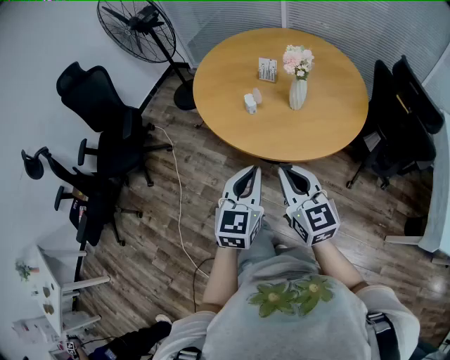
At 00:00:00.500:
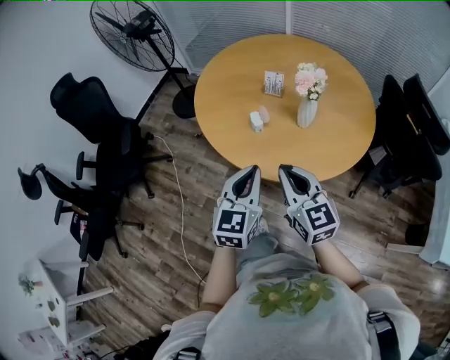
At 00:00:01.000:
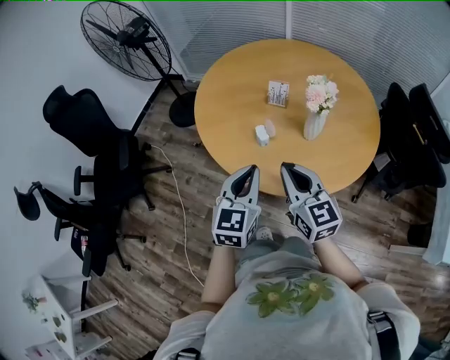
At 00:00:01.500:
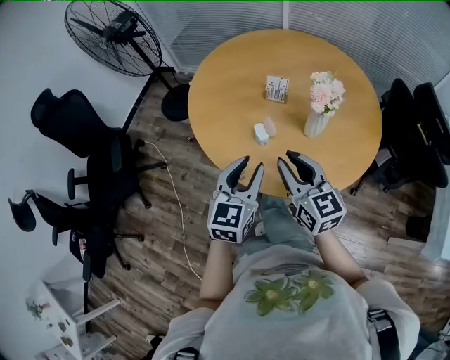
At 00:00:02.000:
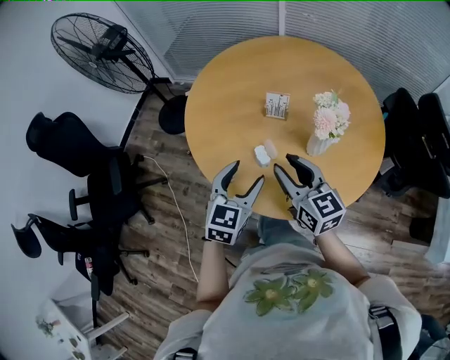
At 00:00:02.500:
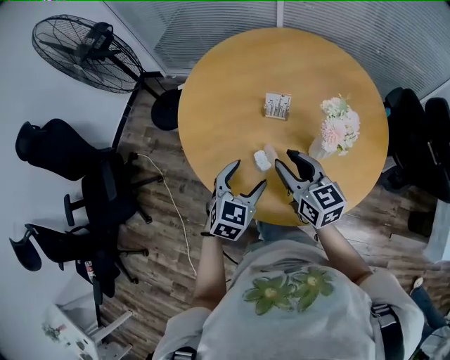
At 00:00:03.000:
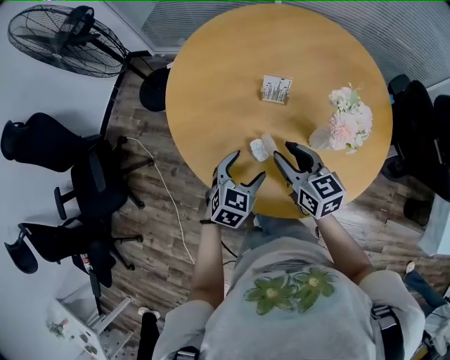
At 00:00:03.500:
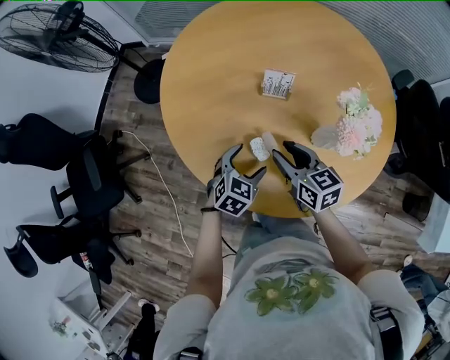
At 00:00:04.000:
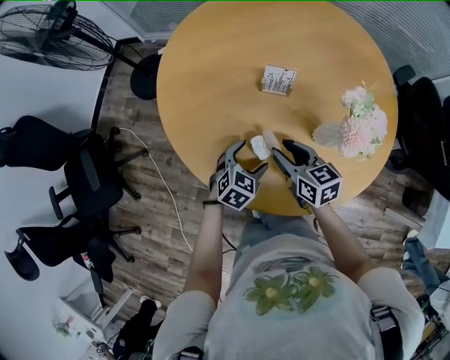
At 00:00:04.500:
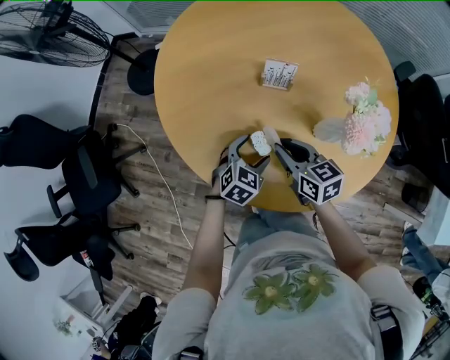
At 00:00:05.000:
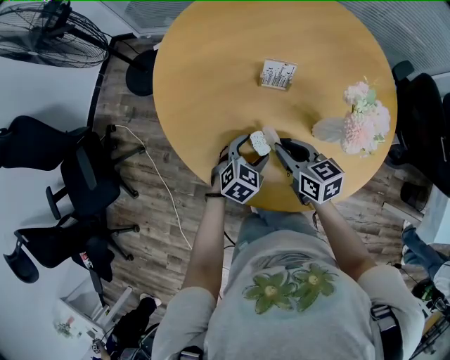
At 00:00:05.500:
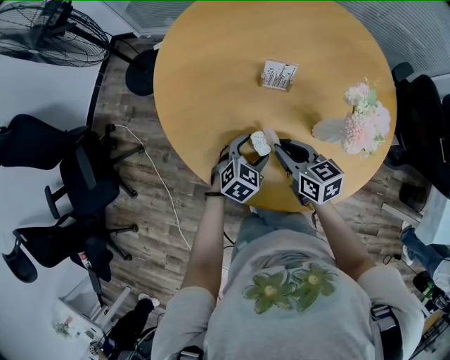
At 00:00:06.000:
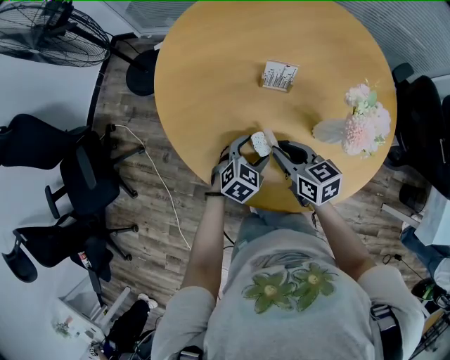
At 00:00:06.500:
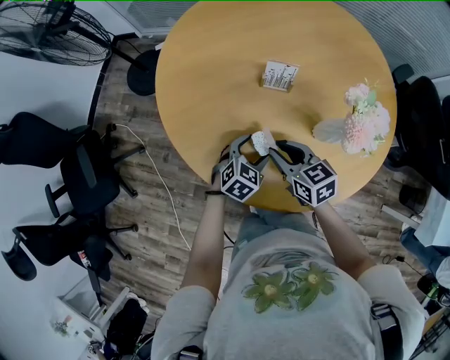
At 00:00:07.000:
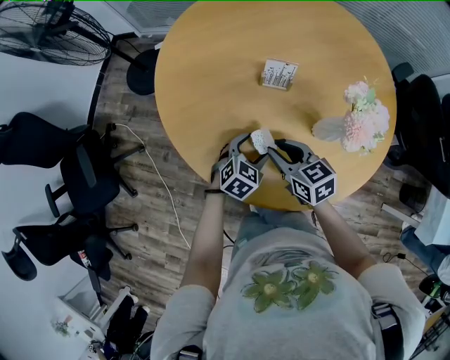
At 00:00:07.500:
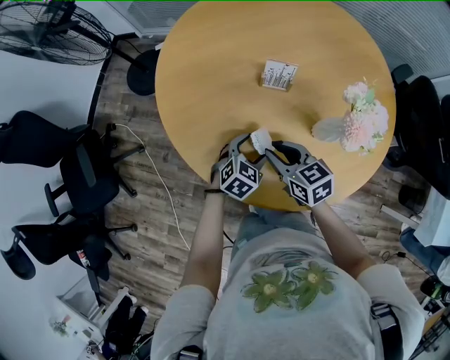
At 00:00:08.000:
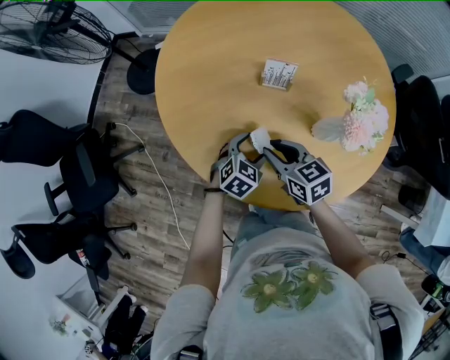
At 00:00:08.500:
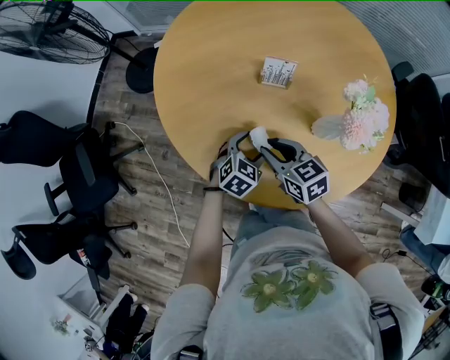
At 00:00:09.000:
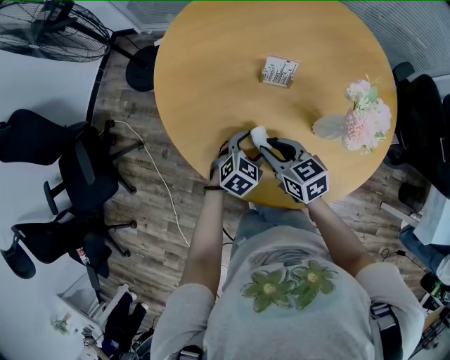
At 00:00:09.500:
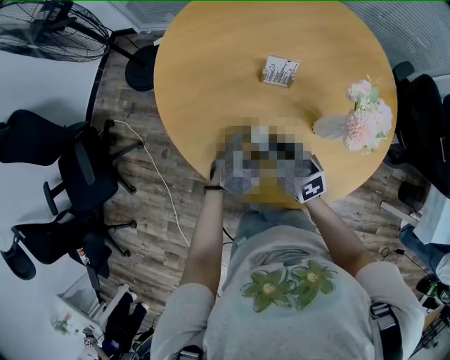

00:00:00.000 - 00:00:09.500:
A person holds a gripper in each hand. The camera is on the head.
00:00:00.000 - 00:00:02.000: Both grippers travel together forward, about 30 cm. The left gripper opens. Meanwhile the right gripper opens.
00:00:02.000 - 00:00:04.000: The right gripper shifts some 20 cm downward and forward, and turns by roughly 20 degrees. The left gripper travels downward by roughly 25 cm, and turns by about 30 degrees.
00:00:04.000 - 00:00:05.500: The right gripper closes its fingers.
00:00:05.500 - 00:00:07.500: The grippers stay close to where they were, moving slightly.
00:00:07.500 - 00:00:09.500: The right gripper closes up.

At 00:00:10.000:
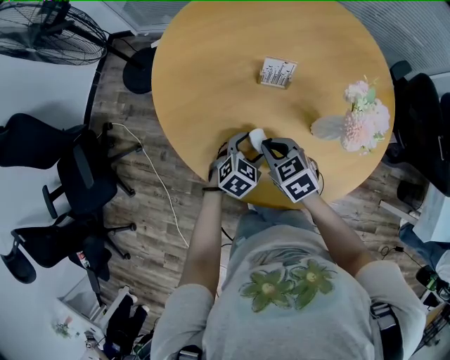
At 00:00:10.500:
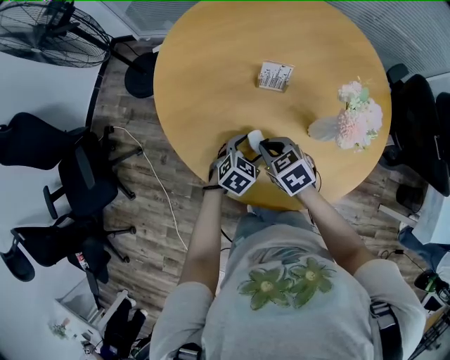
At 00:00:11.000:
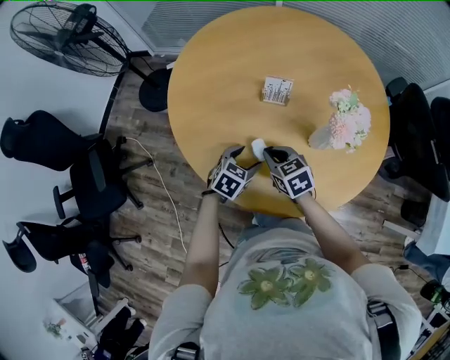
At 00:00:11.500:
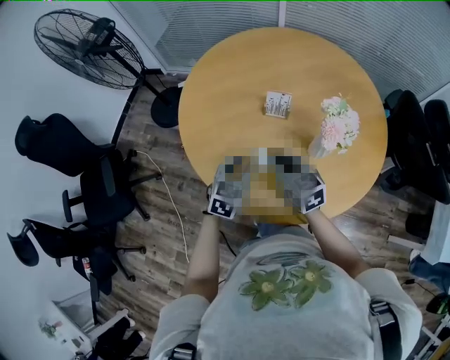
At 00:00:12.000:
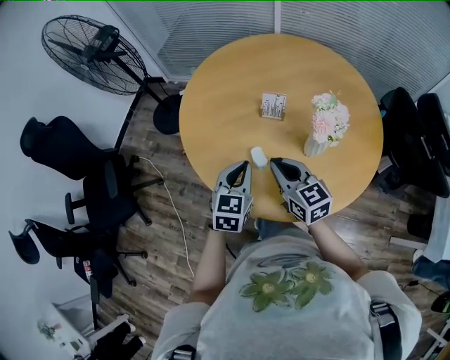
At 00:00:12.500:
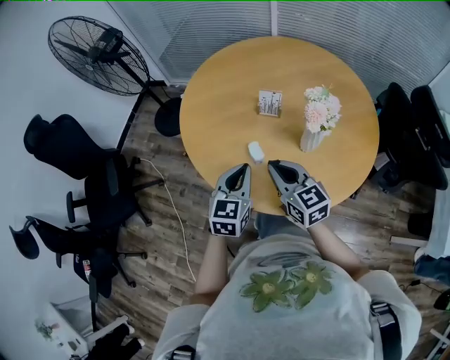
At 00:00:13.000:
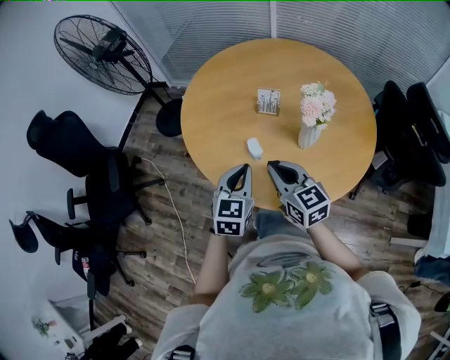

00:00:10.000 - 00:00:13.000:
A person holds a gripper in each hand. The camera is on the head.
00:00:10.000 - 00:00:11.500: The two grippers go approximately 10 cm upward. The left gripper changes its angle by some 20 degrees, and closes up, while the right gripper swivels approximately 20 degrees.
00:00:11.500 - 00:00:13.000: Both grippers travel together backward and upward, roughly 15 cm.

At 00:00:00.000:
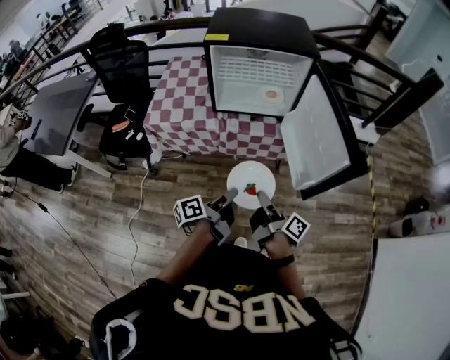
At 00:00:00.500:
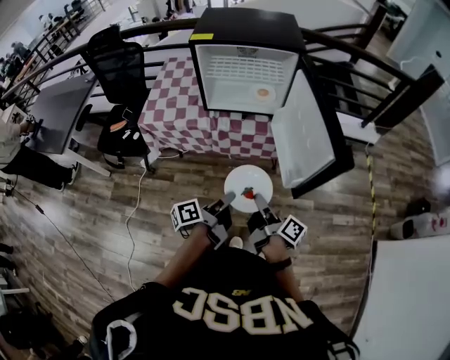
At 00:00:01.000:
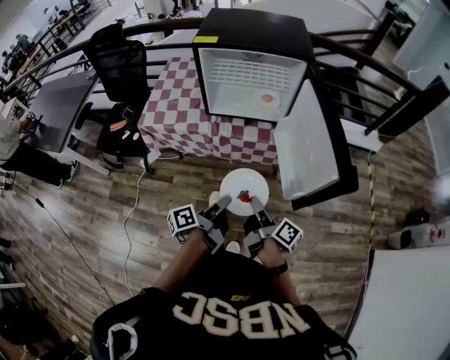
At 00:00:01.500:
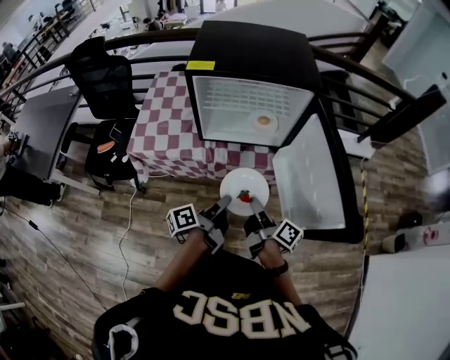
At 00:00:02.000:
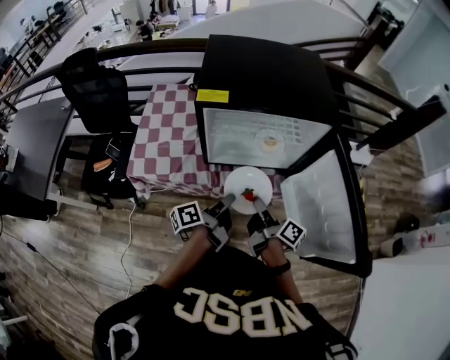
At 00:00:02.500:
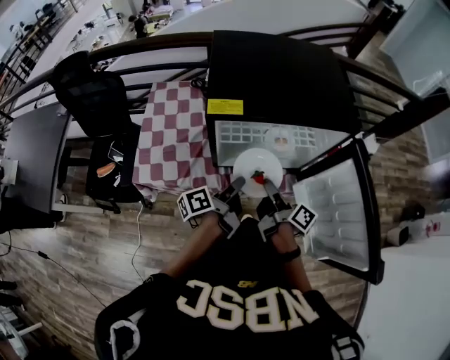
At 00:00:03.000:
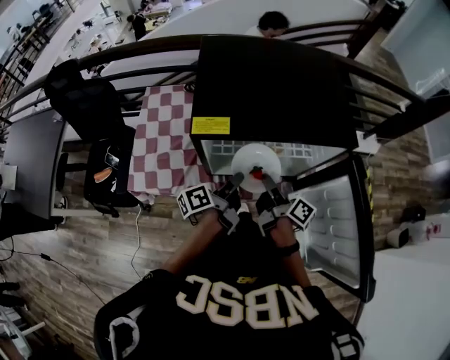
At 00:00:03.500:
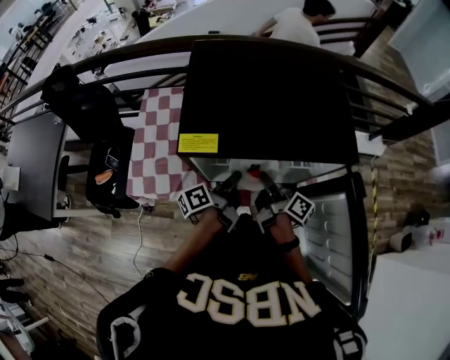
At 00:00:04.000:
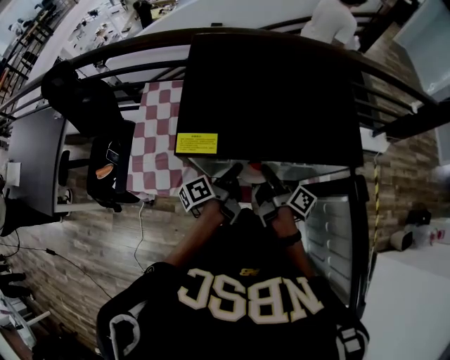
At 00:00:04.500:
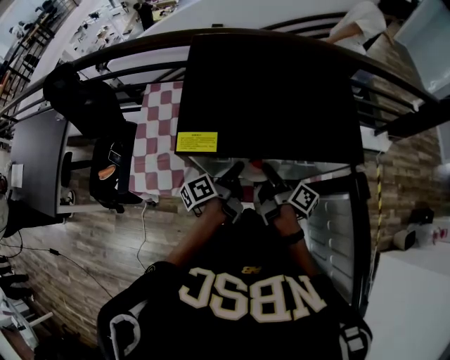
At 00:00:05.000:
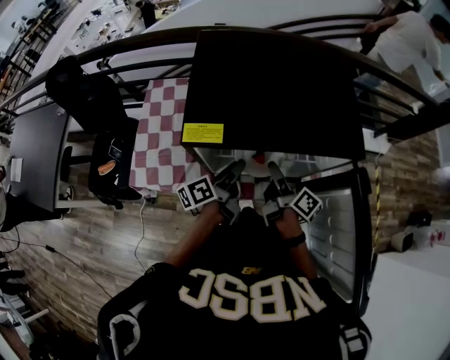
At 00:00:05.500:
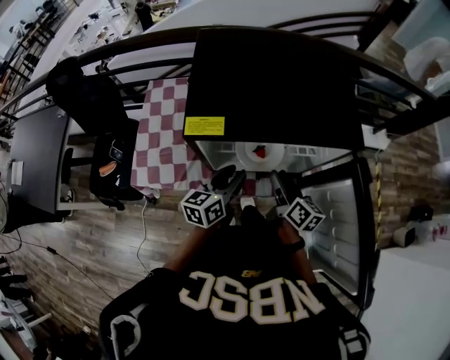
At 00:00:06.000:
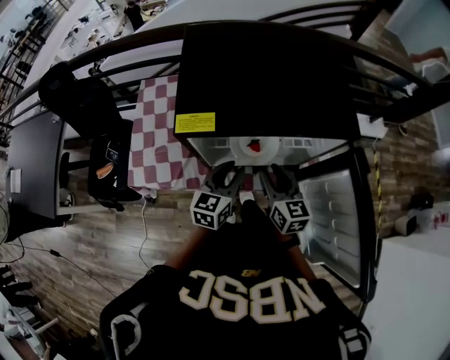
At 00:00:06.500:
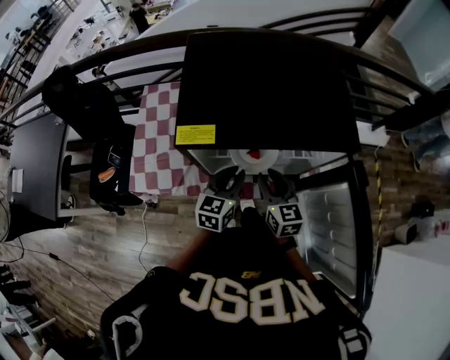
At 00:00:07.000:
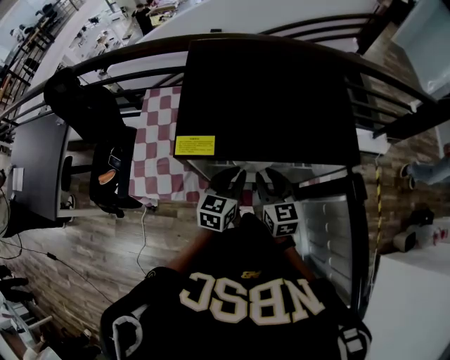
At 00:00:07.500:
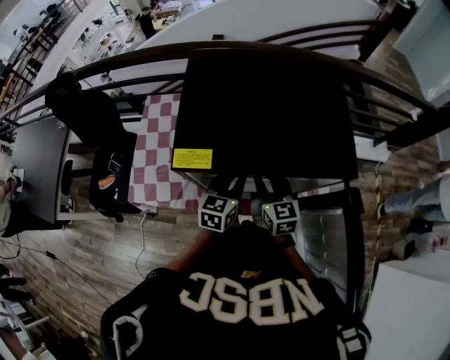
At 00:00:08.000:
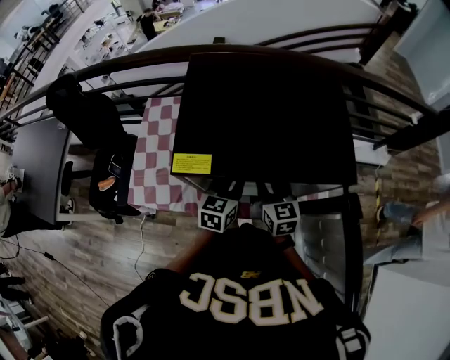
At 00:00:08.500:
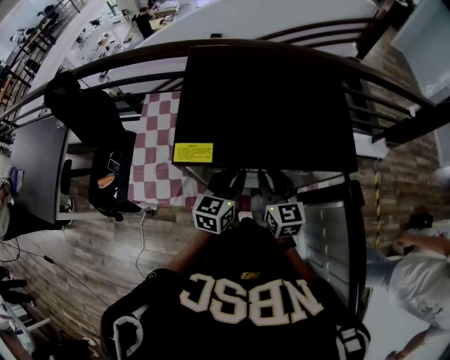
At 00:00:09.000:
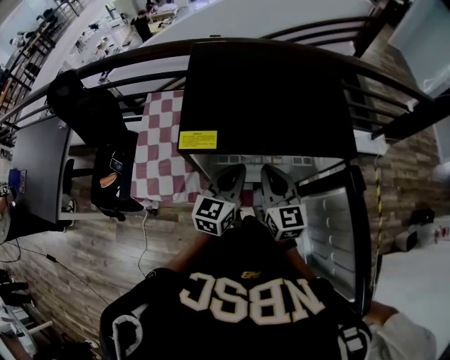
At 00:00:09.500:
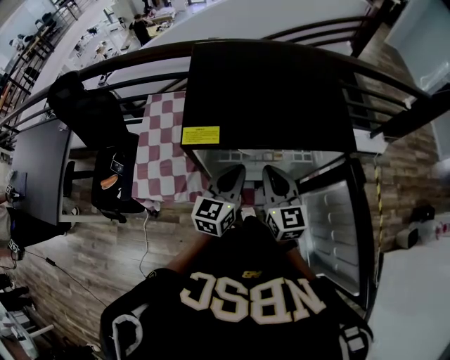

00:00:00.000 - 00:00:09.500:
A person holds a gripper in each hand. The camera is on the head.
00:00:00.000 - 00:00:02.000: Both grippers move forward, about 25 cm.
00:00:02.000 - 00:00:04.000: Both grippers travel together forward, about 20 cm.
00:00:04.000 - 00:00:05.500: The right gripper ends up roughly 5 cm from where it was, turns by roughly 40 degrees, and opens up, while the left gripper shifts about 5 cm backward, rotates around the line of its fingers by some 50 degrees, clockwise from behind, and opens up.
00:00:05.500 - 00:00:07.500: Both grippers travel together forward, approximately 5 cm. The right gripper rolls counterclockwise, seen from behind, by about 40 degrees. Meanwhile the left gripper changes its angle by roughly 20 degrees.
00:00:07.500 - 00:00:09.500: Both grippers travel together upward and backward, about 10 cm. The right gripper closes up.

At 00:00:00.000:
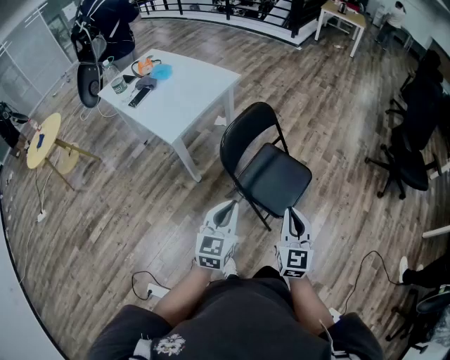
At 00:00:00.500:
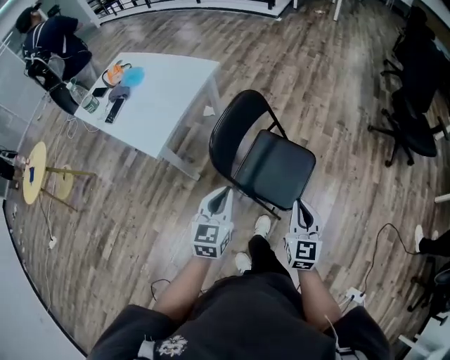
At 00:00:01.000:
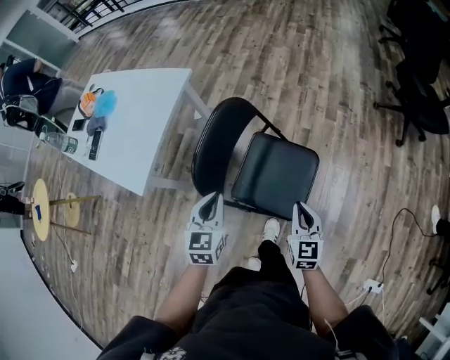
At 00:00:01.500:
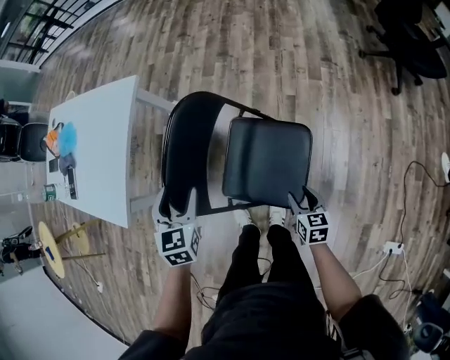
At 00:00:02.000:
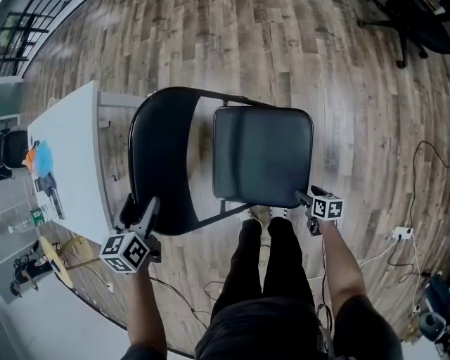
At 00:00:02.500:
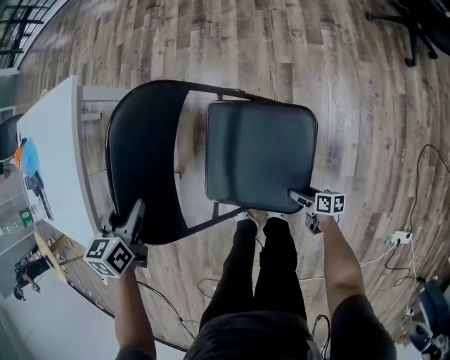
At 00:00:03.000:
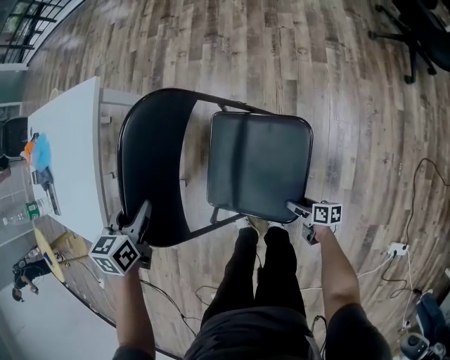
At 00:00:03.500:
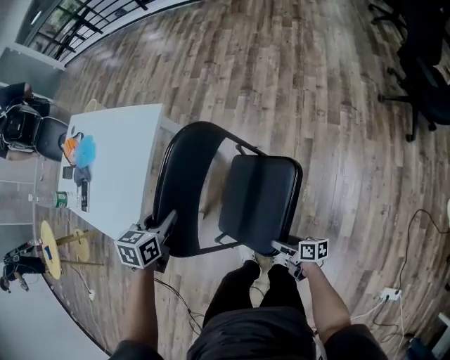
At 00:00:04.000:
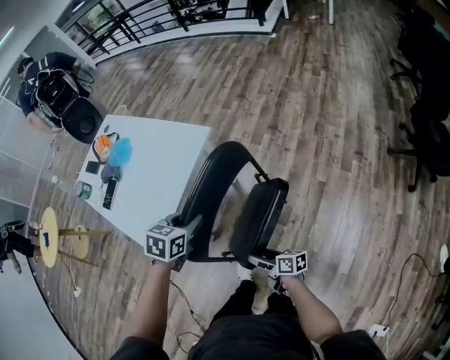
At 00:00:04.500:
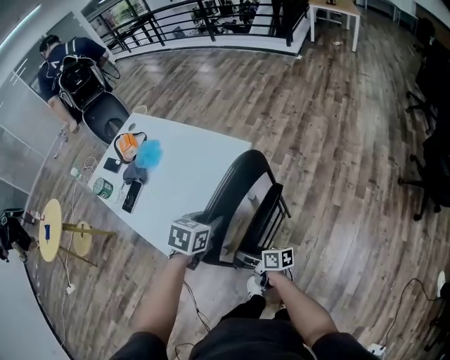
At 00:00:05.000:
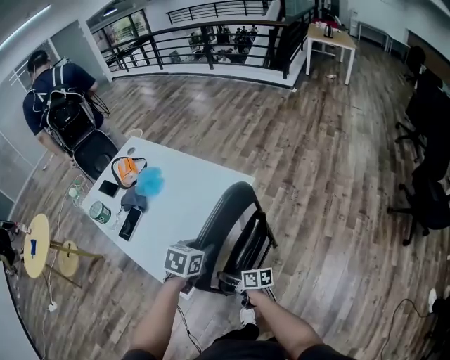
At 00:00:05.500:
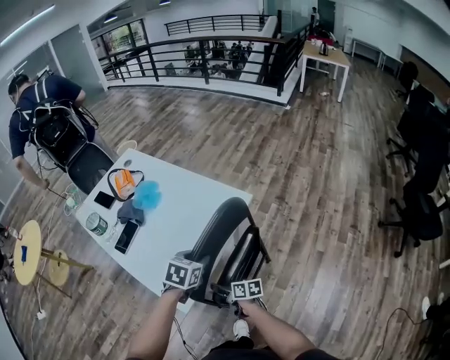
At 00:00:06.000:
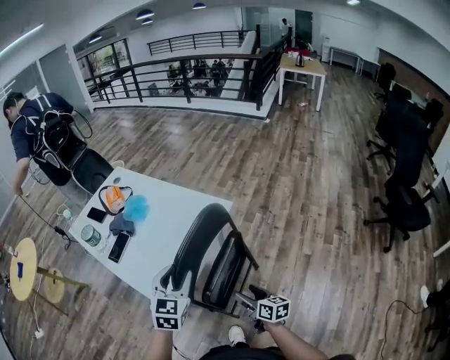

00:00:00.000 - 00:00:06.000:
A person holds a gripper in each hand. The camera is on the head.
00:00:00.000 - 00:00:02.000: The right gripper goes approximately 60 cm downward and forward, tilts its fingers approximately 40 degrees downward, and opens, while the left gripper is displaced forward and downward by approximately 50 cm, angles its fingers downward, by roughly 30 degrees, and opens its fingers.
00:00:02.000 - 00:00:04.000: The right gripper shifts roughly 40 cm upward, to the left and forward, and tilts its fingers some 30 degrees upward; the left gripper heads upward, covering roughly 15 cm, and closes.
00:00:04.000 - 00:00:06.000: The right gripper heads upward, forward and to the left, covering some 20 cm, and changes its angle by about 30 degrees, while the left gripper travels to the left and upward by approximately 25 cm, and changes its angle by about 30 degrees.
